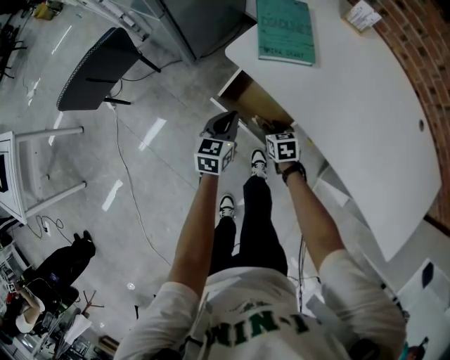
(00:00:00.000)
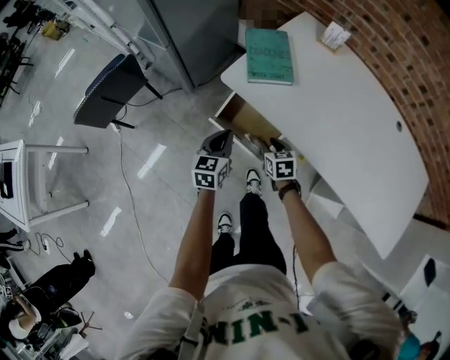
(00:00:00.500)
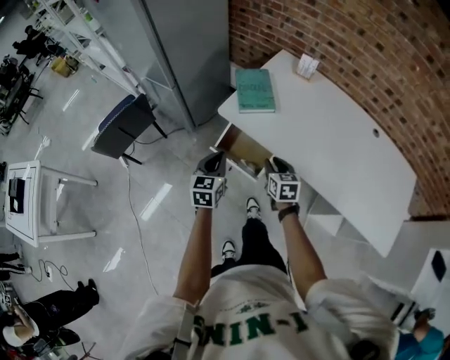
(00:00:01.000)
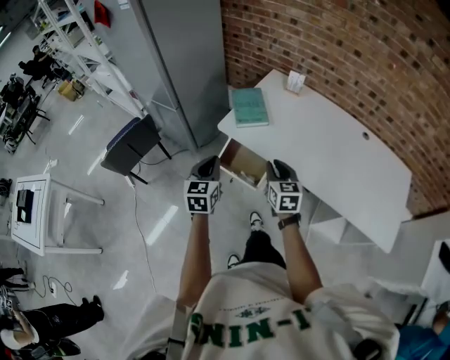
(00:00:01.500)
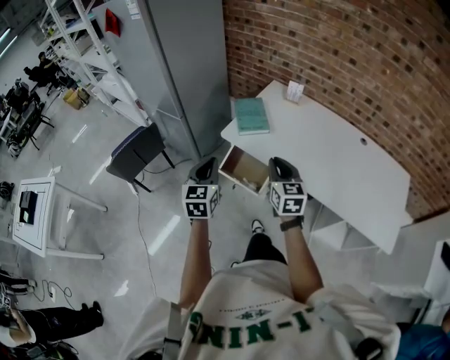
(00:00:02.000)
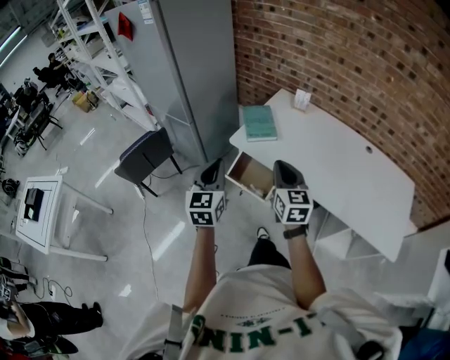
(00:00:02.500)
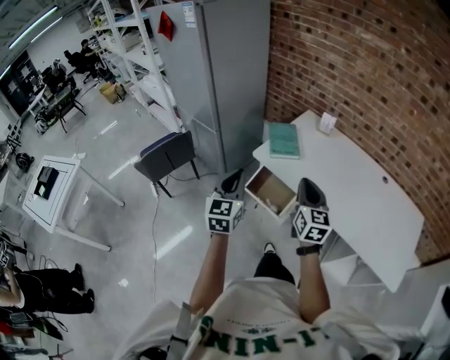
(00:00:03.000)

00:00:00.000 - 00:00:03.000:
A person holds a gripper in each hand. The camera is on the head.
00:00:00.000 - 00:00:01.500: The right gripper is displaced upward by about 35 cm, and angles its fingers upward, by about 30 degrees. The left gripper moves upward and backward, roughly 30 cm.
00:00:01.500 - 00:00:03.000: The right gripper shifts some 15 cm upward. The left gripper moves upward and backward, approximately 10 cm.

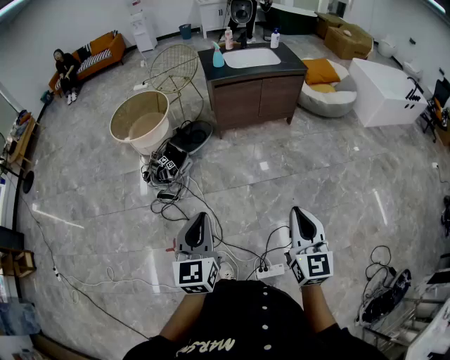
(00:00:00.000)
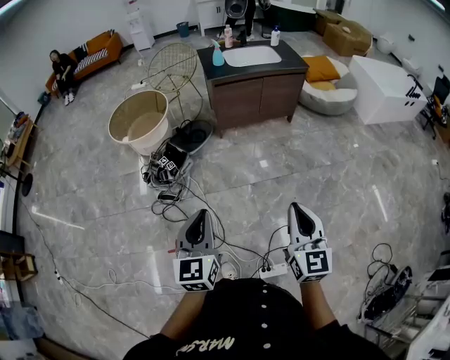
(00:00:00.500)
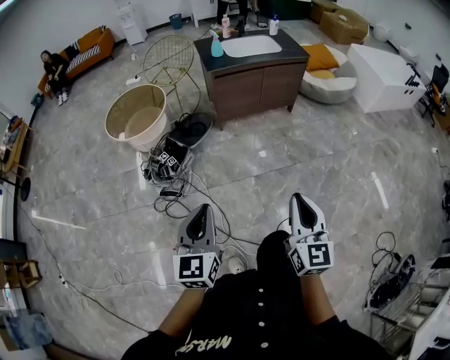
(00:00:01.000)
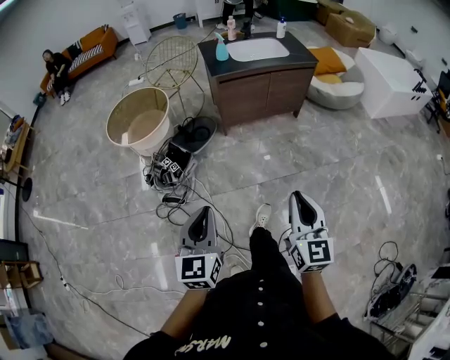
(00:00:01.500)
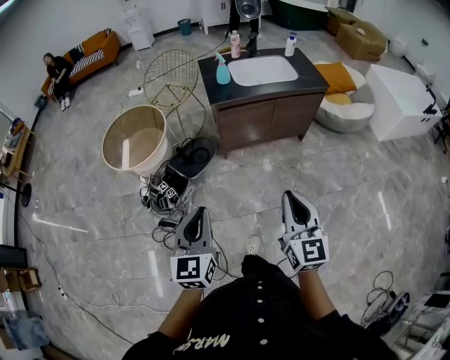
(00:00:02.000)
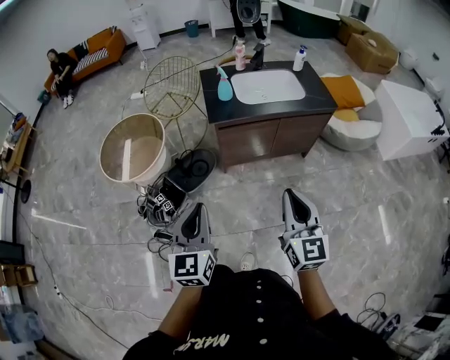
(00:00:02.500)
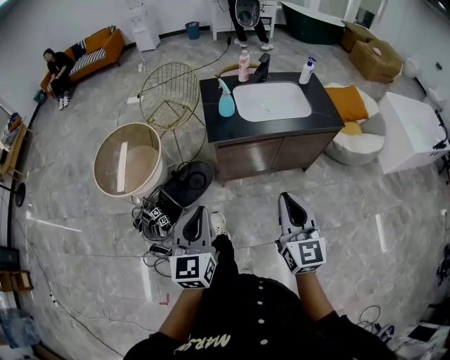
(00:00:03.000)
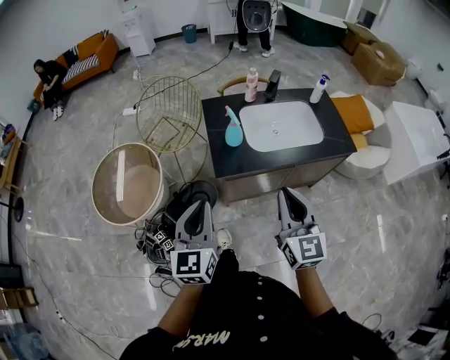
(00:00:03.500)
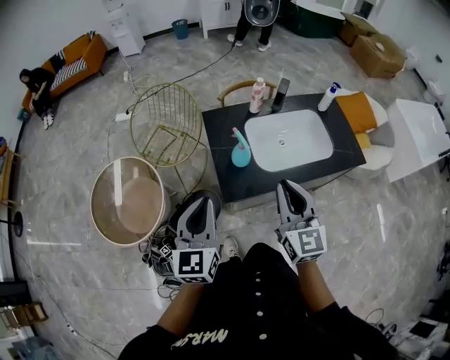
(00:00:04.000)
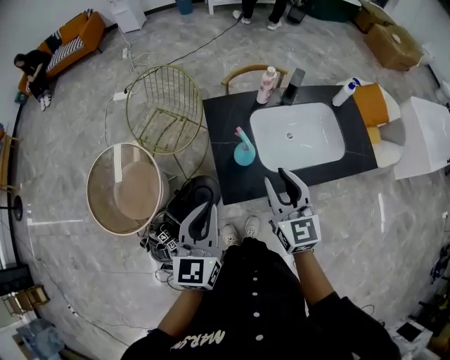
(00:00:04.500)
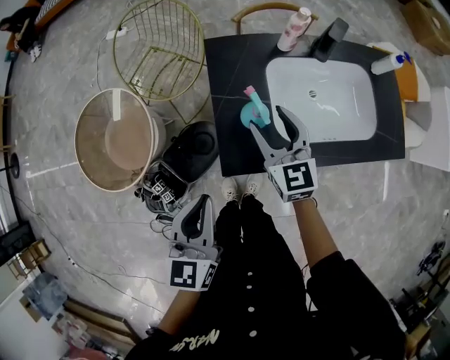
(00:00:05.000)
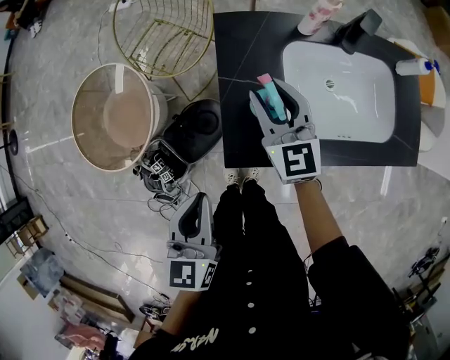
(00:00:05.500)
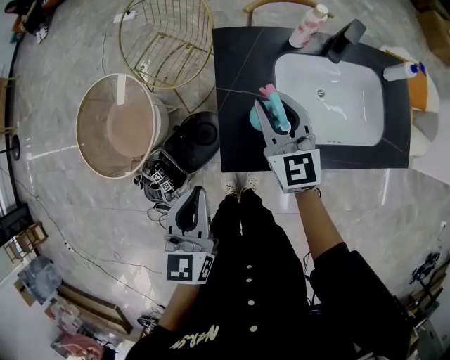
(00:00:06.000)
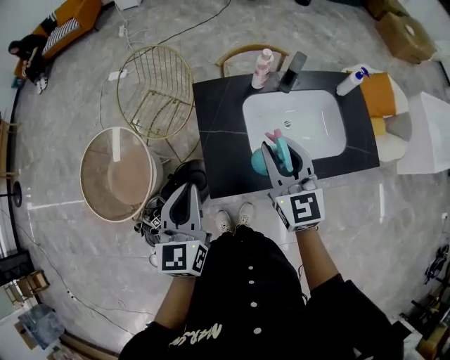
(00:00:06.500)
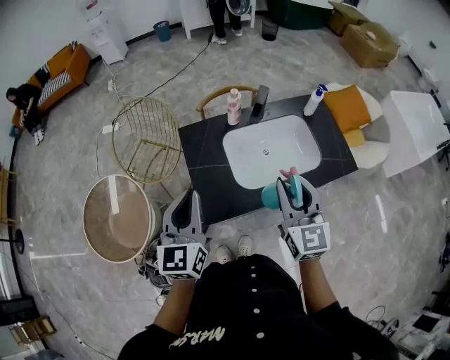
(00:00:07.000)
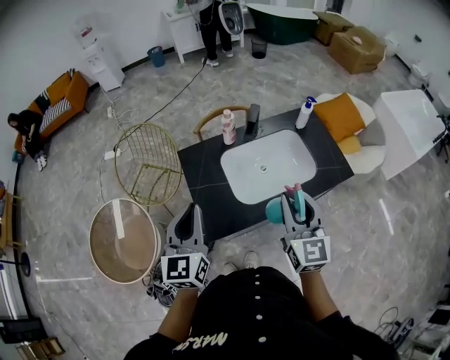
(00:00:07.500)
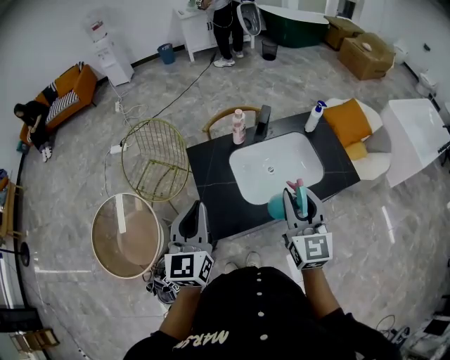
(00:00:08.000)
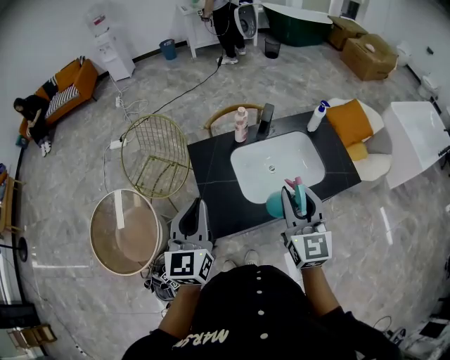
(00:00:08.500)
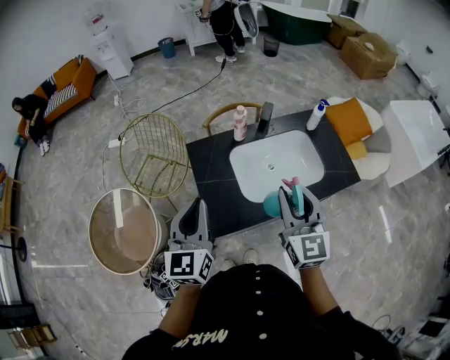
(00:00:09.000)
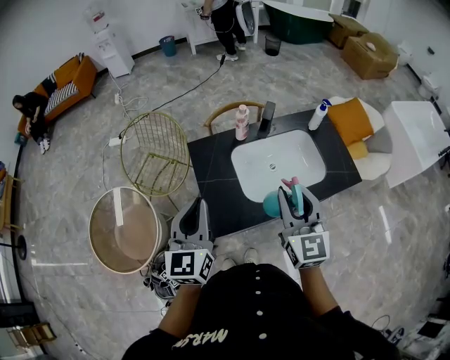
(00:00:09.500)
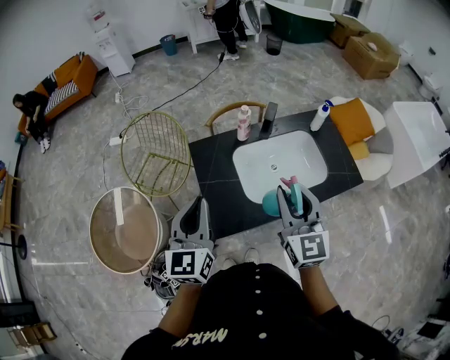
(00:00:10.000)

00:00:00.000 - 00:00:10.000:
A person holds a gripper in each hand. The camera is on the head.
00:00:00.000 - 00:00:02.000: The two grippers go roughly 35 cm forward.
00:00:02.000 - 00:00:04.000: The pair of grippers is taken forward, about 60 cm.
00:00:04.000 - 00:00:06.000: The left gripper travels downward and forward by approximately 15 cm, and swivels roughly 20 degrees. The right gripper heads forward and downward, covering roughly 30 cm, and opens up.
00:00:06.000 - 00:00:08.000: The left gripper shifts approximately 15 cm upward, and swivels about 30 degrees; the right gripper travels upward, to the right and backward by about 30 cm, and swivels approximately 30 degrees.
00:00:08.000 - 00:00:10.000: The grippers make only small movements.

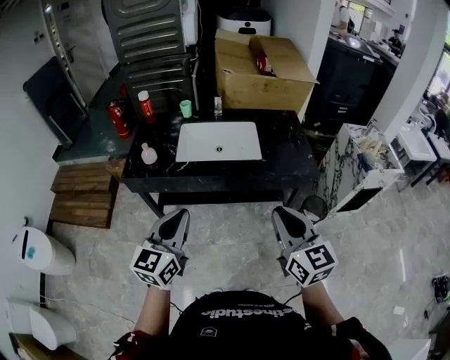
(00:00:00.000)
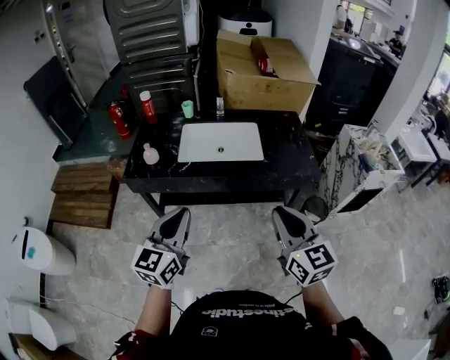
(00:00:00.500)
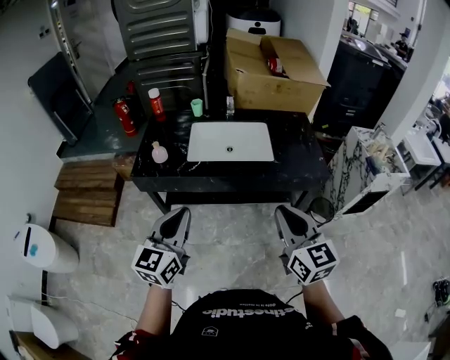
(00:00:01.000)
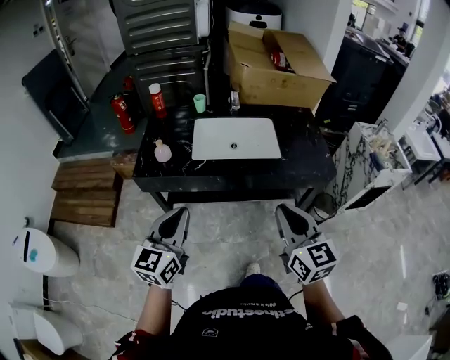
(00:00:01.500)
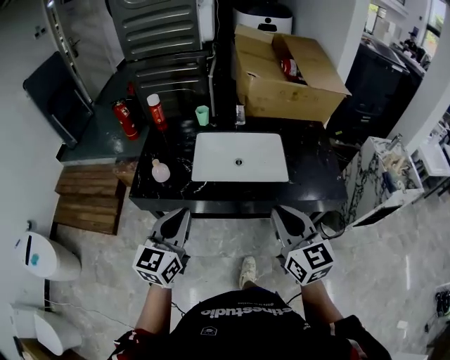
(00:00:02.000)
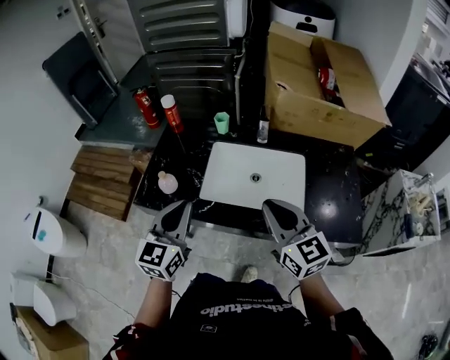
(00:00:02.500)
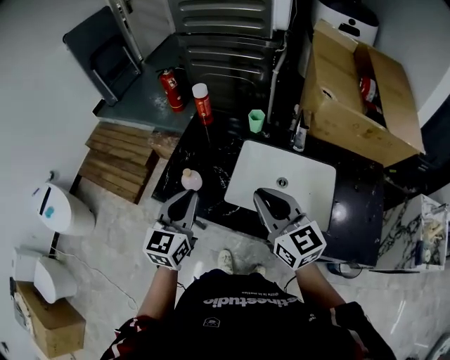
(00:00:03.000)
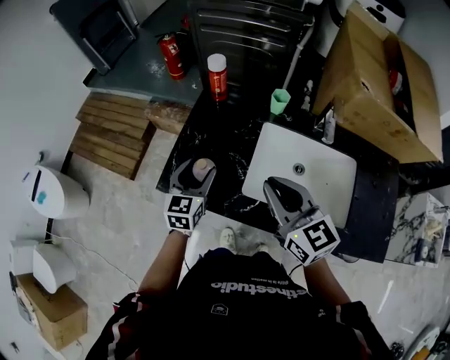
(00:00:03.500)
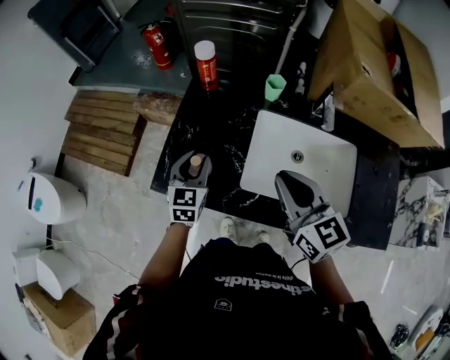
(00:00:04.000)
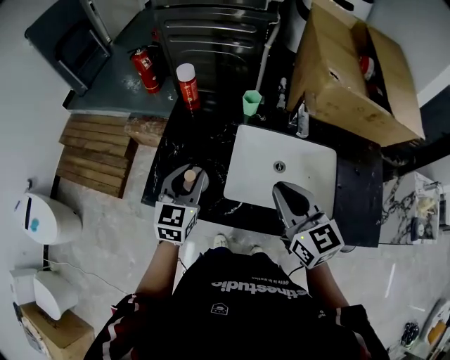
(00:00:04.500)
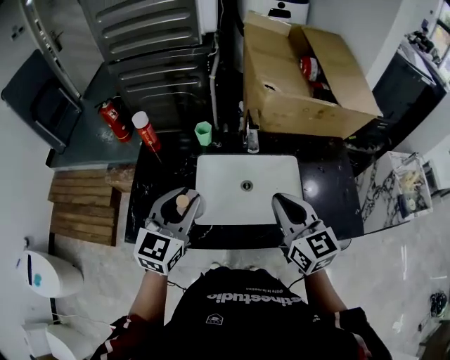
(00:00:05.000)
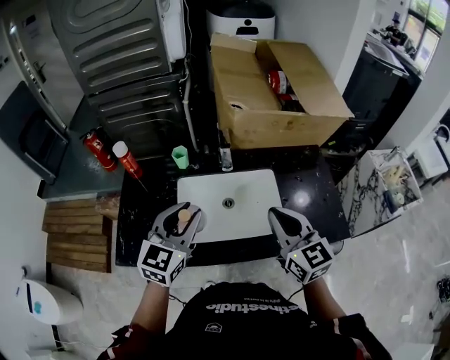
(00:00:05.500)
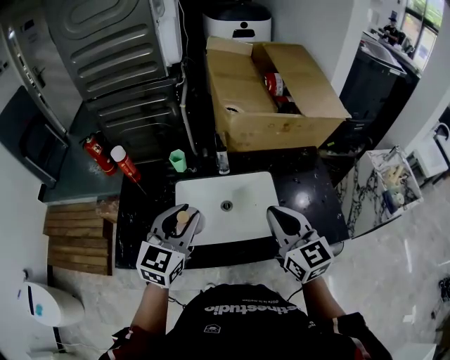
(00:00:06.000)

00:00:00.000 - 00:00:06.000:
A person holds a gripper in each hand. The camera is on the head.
00:00:00.000 - 00:00:02.000: The grippers both shift forward and to the left by roughly 20 cm.
00:00:02.000 - 00:00:04.000: The left gripper goes some 40 cm forward and downward, turns by about 30 degrees, and opens its fingers; the right gripper is displaced forward by approximately 35 cm, and swivels approximately 20 degrees.
00:00:04.000 - 00:00:06.000: The right gripper ends up some 25 cm from where it was, and changes its angle by approximately 20 degrees; the left gripper moves some 35 cm, and turns by roughly 30 degrees.

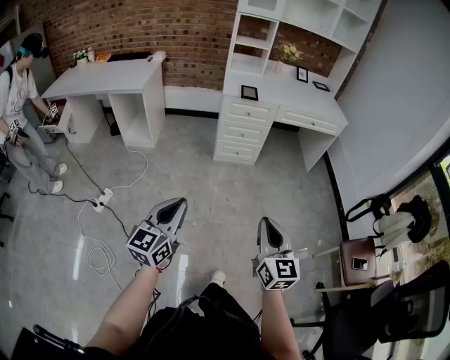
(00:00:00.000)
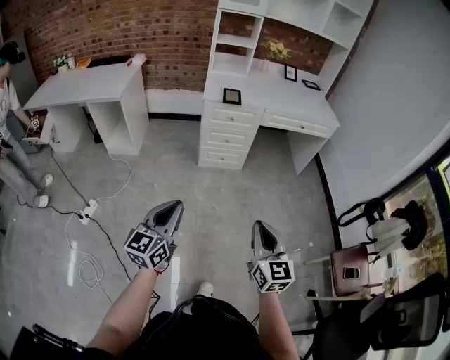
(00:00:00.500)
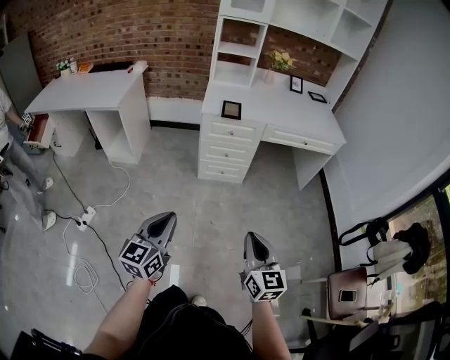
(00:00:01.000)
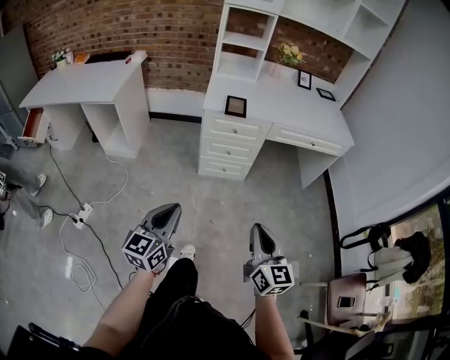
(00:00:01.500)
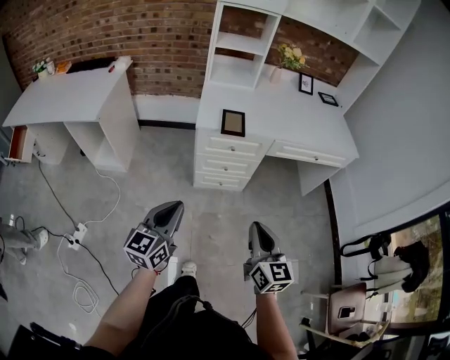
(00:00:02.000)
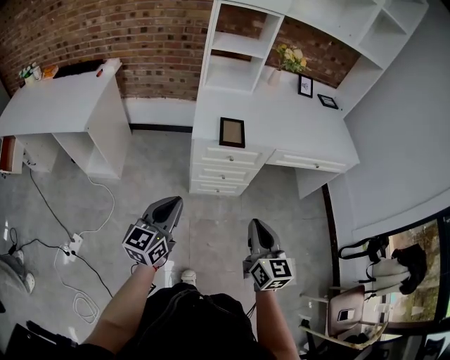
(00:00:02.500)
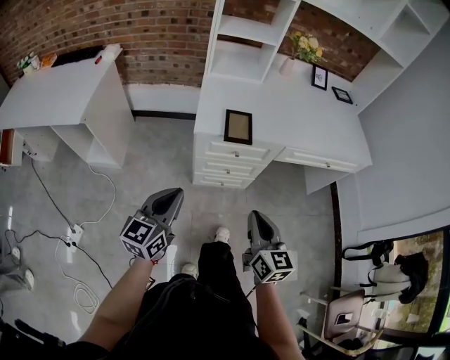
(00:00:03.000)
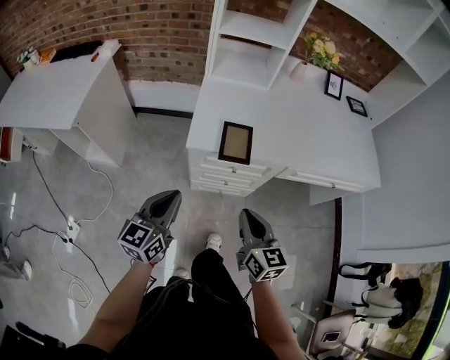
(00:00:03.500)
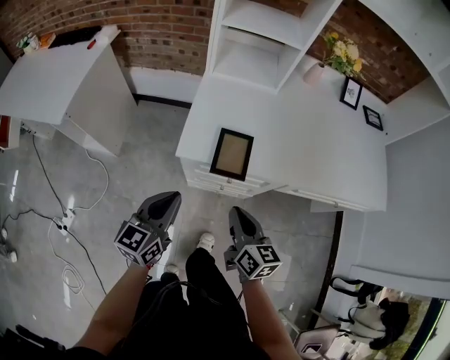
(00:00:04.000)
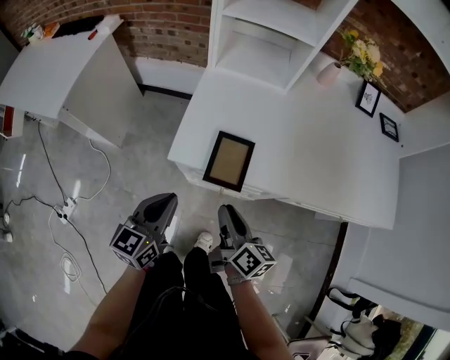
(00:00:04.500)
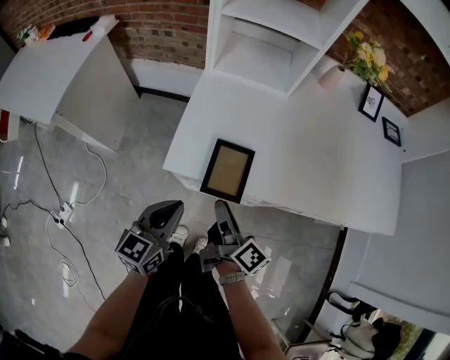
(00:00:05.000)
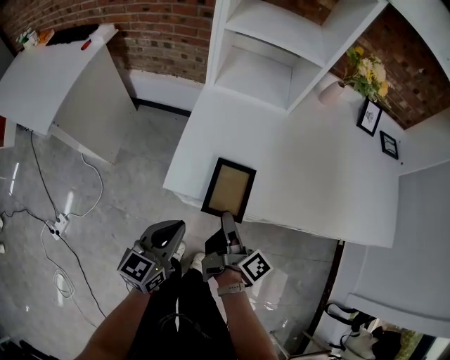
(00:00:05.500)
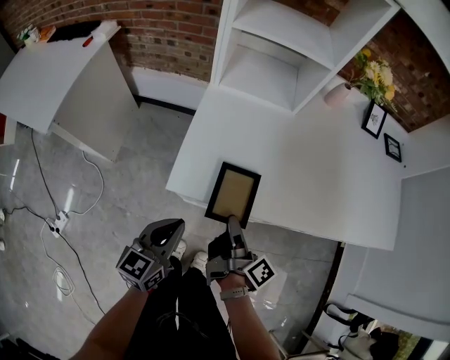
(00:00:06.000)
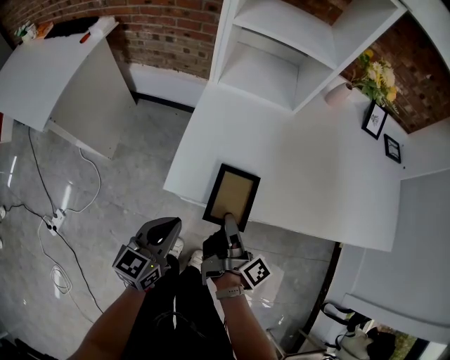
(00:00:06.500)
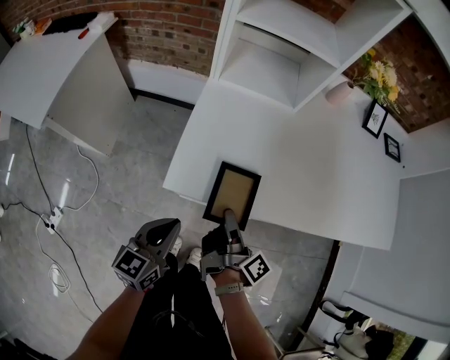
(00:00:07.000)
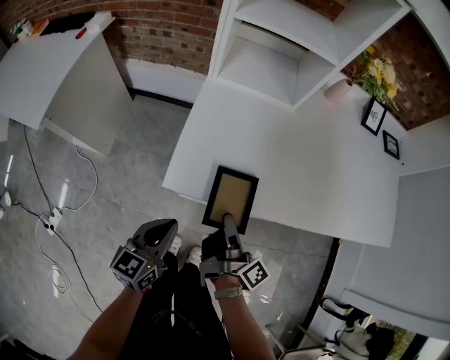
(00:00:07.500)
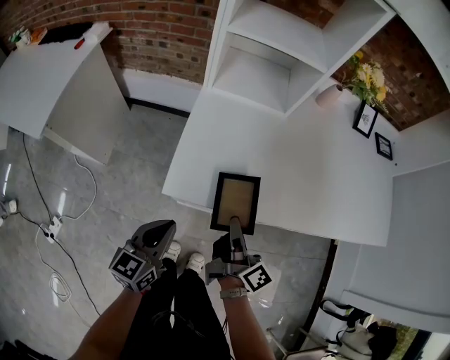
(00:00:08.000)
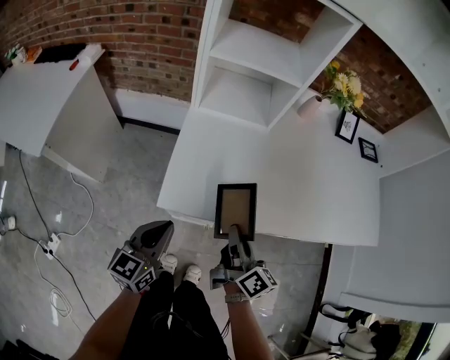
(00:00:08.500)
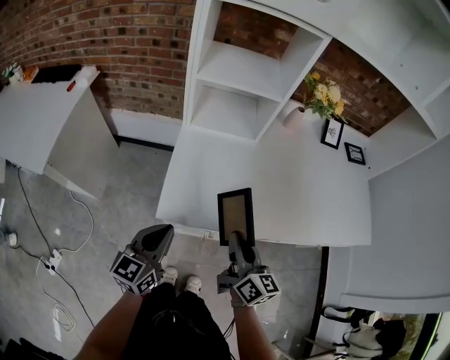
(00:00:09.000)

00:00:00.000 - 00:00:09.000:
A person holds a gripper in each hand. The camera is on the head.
00:00:00.000 - 00:00:02.000: The two grippers travel together, forward, some 40 cm.
00:00:02.000 - 00:00:04.500: Both grippers travel together forward, approximately 35 cm. The right gripper rotates around the line of its fingers by roughly 40 degrees, clockwise from behind.
00:00:04.500 - 00:00:07.000: The left gripper goes some 5 cm downward, while the right gripper goes roughly 5 cm forward, swivels roughly 40 degrees, and opens, then closes again.
00:00:07.000 - 00:00:09.000: The left gripper moves upward, about 10 cm. The right gripper heads upward and to the right, covering roughly 10 cm, and rotates around the line of its fingers by approximately 60 degrees, counterclockwise from behind.
